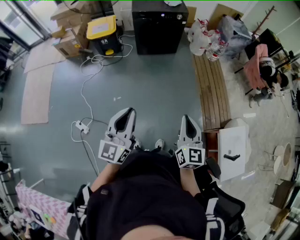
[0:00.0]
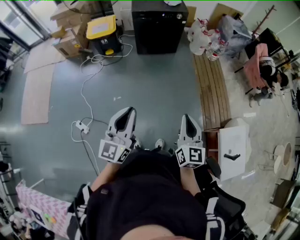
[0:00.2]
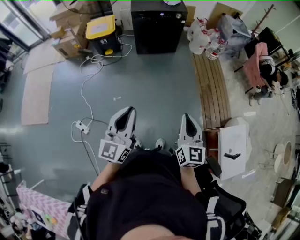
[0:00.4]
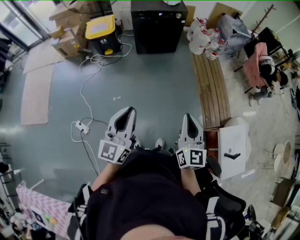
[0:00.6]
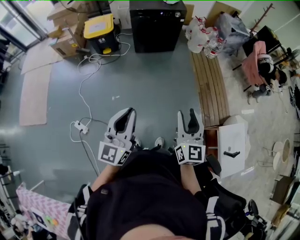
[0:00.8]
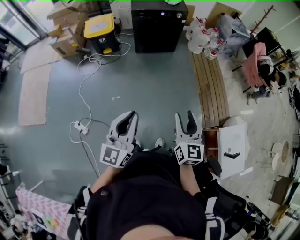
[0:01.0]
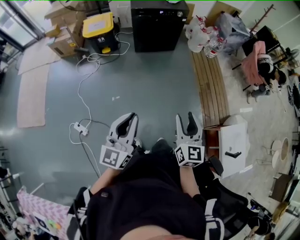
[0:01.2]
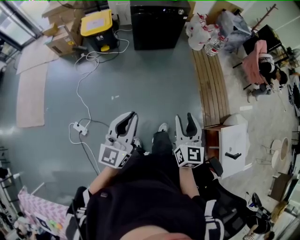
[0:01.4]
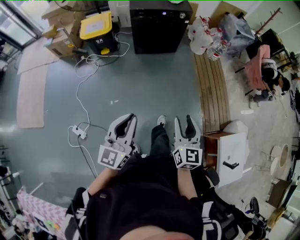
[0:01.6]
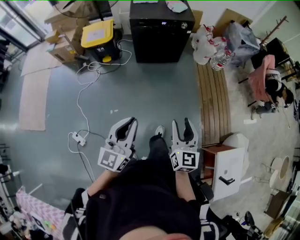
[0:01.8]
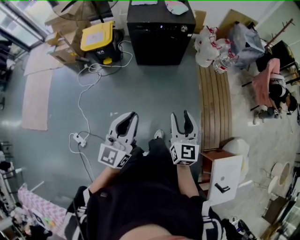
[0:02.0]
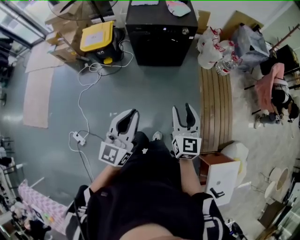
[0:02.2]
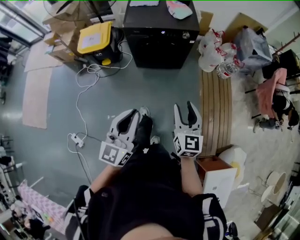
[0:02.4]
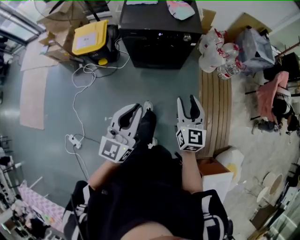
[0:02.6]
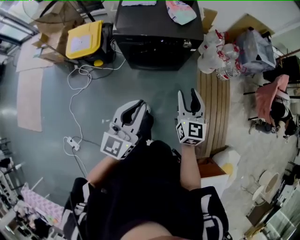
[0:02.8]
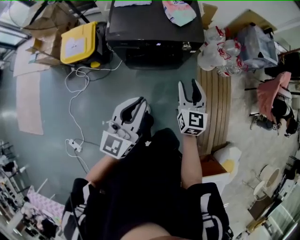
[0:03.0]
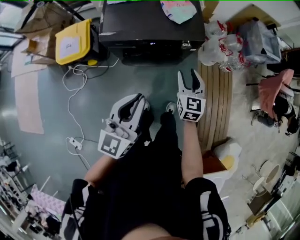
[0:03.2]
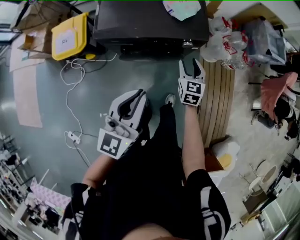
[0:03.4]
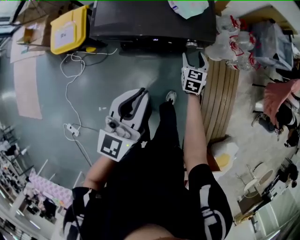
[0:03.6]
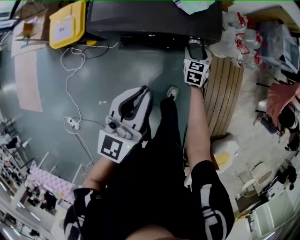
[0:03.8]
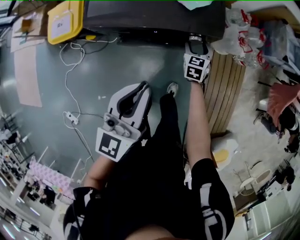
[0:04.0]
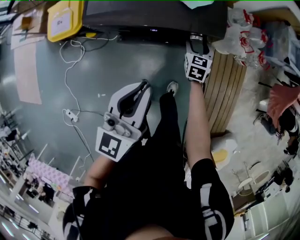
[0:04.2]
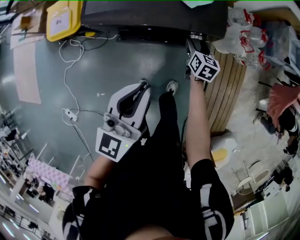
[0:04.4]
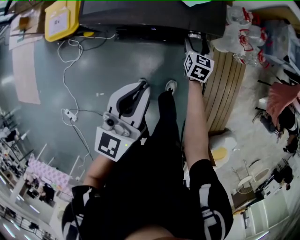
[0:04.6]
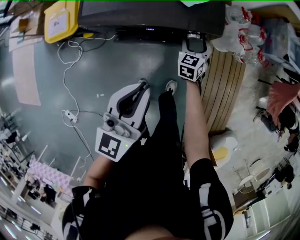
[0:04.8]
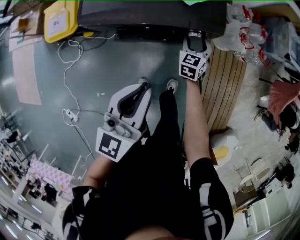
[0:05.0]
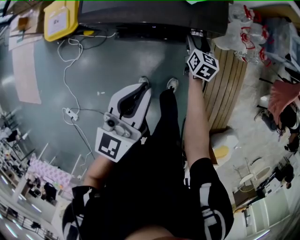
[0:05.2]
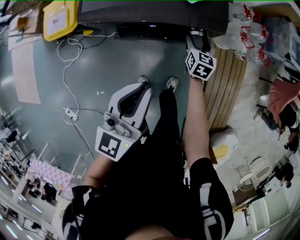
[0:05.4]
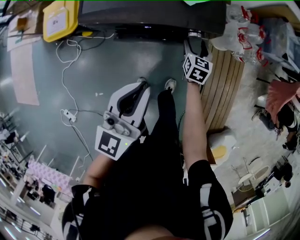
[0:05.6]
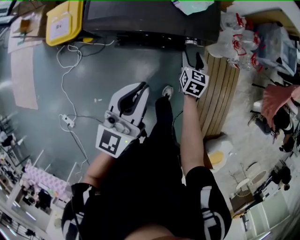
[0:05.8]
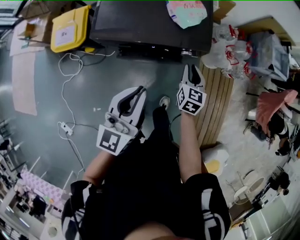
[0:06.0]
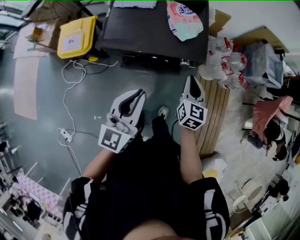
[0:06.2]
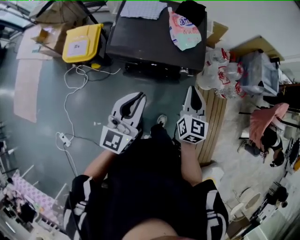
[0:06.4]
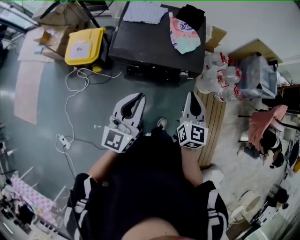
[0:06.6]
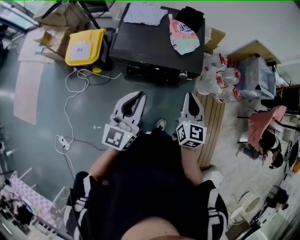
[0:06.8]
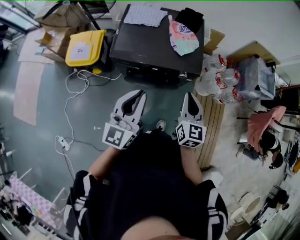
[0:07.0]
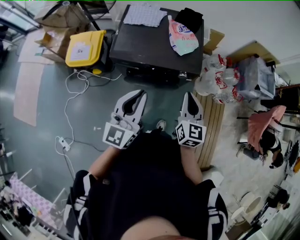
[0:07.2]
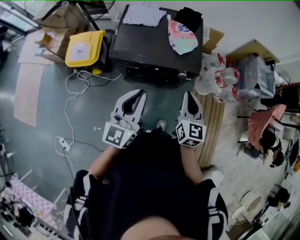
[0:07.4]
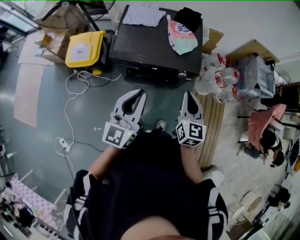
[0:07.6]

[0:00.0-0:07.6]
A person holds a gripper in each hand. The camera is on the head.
0.0 to 1.6 s: The two grippers go approximately 15 cm forward and downward. The right gripper opens its fingers.
1.6 to 3.0 s: Both grippers are carried forward, approximately 80 cm.
3.0 to 4.6 s: The left gripper goes roughly 25 cm forward and downward. Meanwhile the right gripper travels downward and forward by some 40 cm, and rotates some 20 degrees.
4.6 to 6.0 s: The left gripper moves upward, some 5 cm, while the right gripper travels upward and backward by some 15 cm, and closes up.
6.0 to 7.6 s: The left gripper shifts roughly 15 cm upward and backward; the right gripper shifts about 25 cm upward and backward.

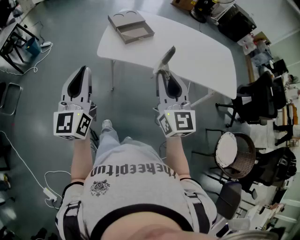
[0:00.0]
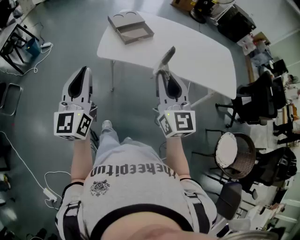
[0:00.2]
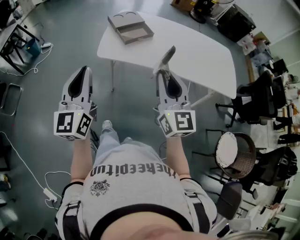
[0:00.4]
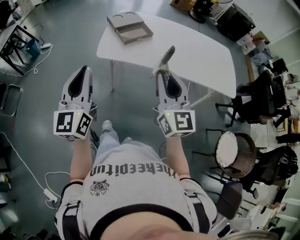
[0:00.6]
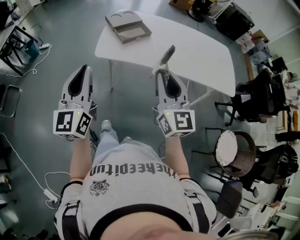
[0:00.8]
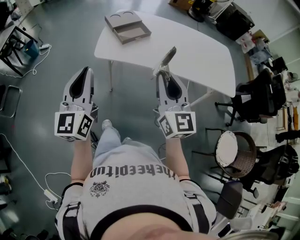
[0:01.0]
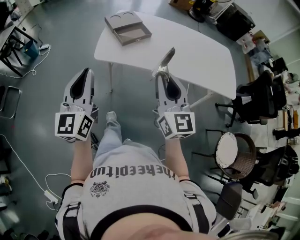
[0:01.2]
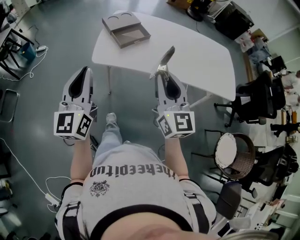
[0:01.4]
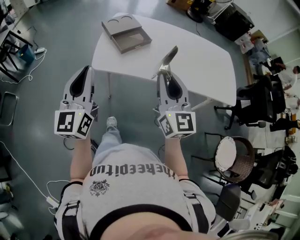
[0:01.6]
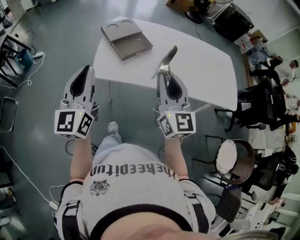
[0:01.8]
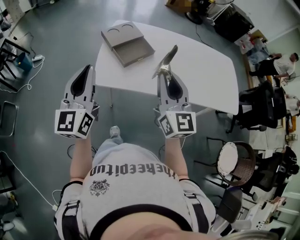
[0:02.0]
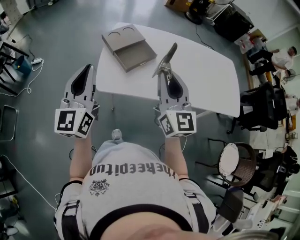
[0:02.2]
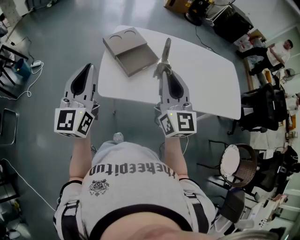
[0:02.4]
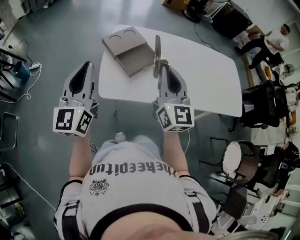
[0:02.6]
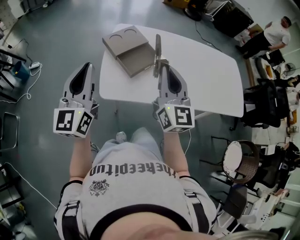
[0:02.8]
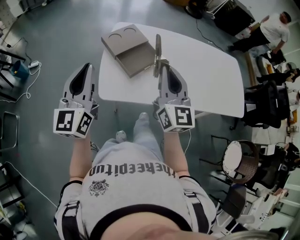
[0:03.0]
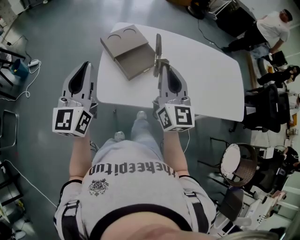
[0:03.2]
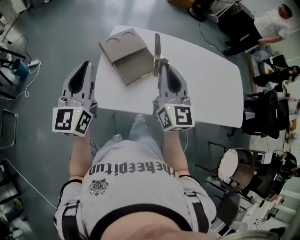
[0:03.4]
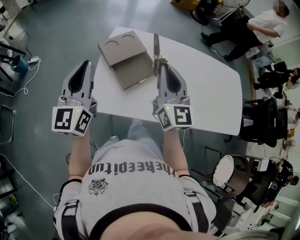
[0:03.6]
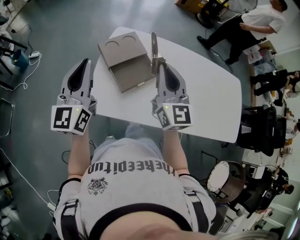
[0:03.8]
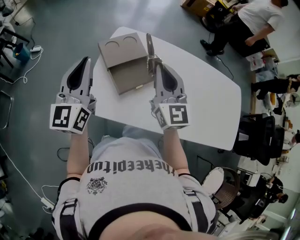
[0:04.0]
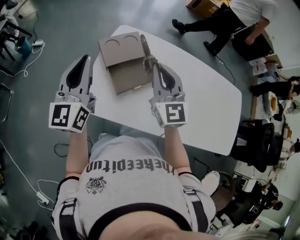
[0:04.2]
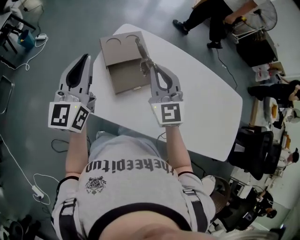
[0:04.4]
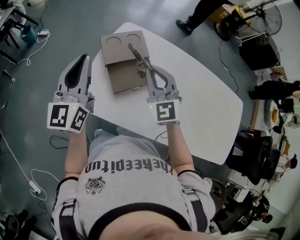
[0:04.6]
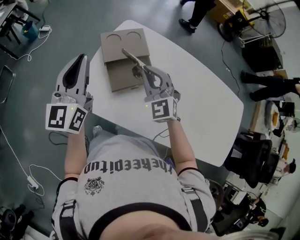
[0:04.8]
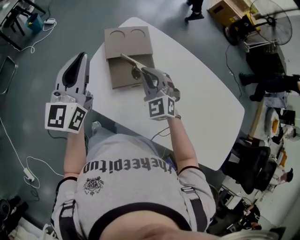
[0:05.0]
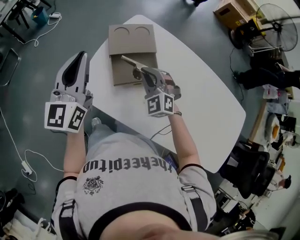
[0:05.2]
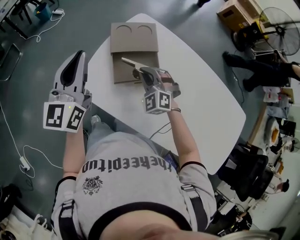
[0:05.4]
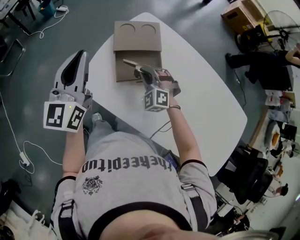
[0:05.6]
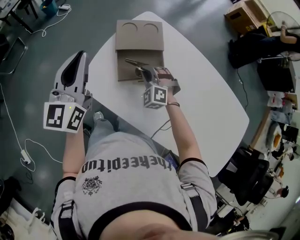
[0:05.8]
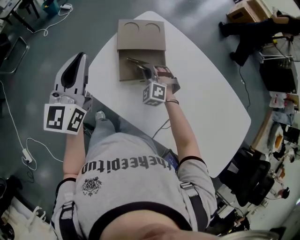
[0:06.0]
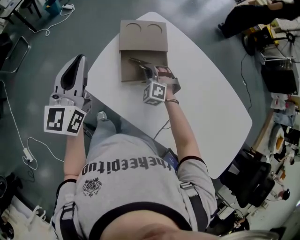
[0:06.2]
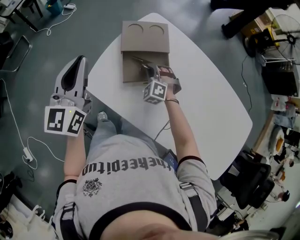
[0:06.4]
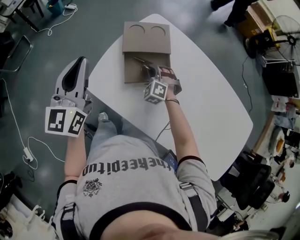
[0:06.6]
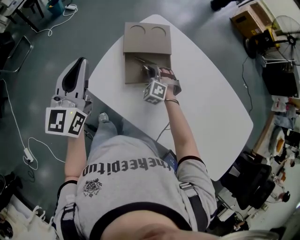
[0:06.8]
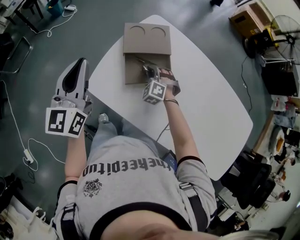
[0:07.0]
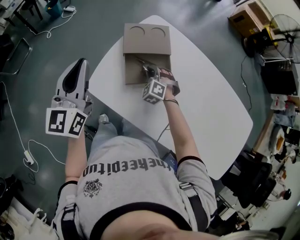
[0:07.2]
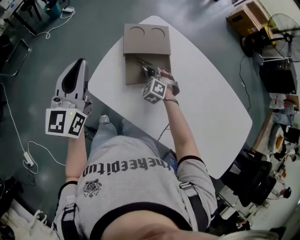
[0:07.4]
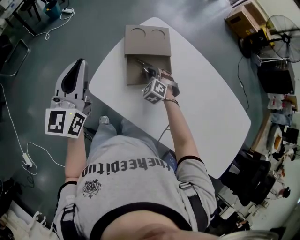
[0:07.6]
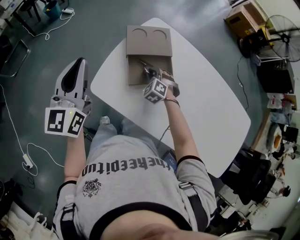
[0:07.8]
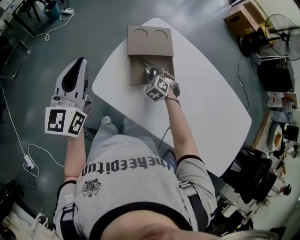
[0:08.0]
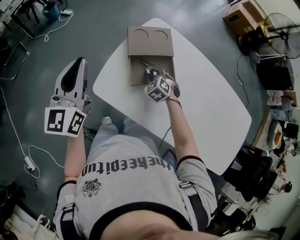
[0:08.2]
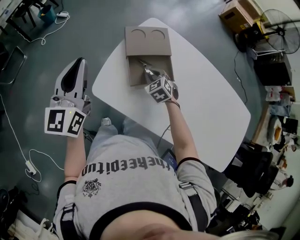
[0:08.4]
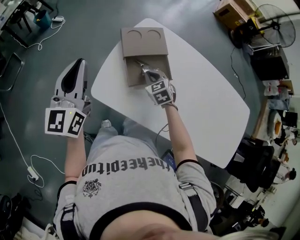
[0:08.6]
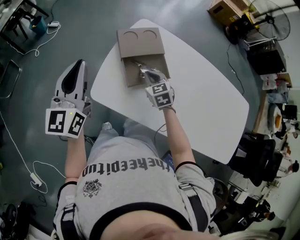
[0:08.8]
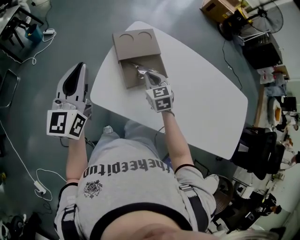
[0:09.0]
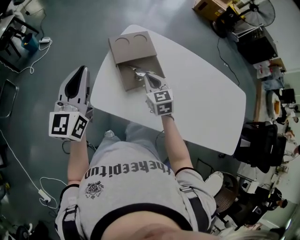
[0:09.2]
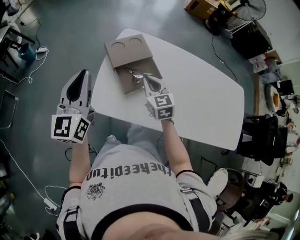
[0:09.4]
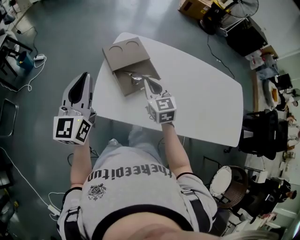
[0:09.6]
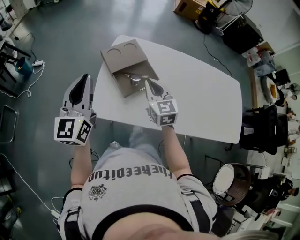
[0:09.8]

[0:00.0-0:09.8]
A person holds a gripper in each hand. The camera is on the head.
0.0 to 1.4 s: The left gripper moves forward, about 5 cm.
1.4 to 2.8 s: Both grippers move forward, approximately 25 cm.
2.8 to 4.2 s: The left gripper moves forward and to the right, roughly 15 cm. The right gripper travels forward by roughly 20 cm, and rotates some 30 degrees.
4.2 to 5.6 s: The right gripper travels downward by about 20 cm, and angles its fingers downward, by some 30 degrees.
5.6 to 7.0 s: The right gripper moves downward, roughly 10 cm.
7.0 to 8.4 s: The right gripper rotates roughly 30 degrees, while the left gripper ends up about 5 cm from where it was.
8.4 to 9.8 s: The right gripper is displaced upward and backward by some 20 cm, and tilts its fingers approximately 30 degrees upward.

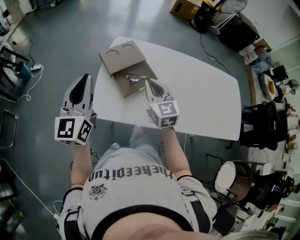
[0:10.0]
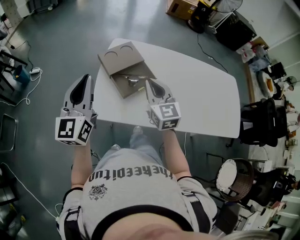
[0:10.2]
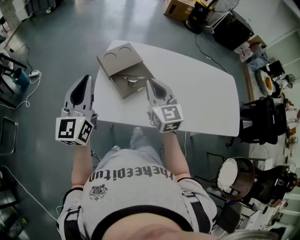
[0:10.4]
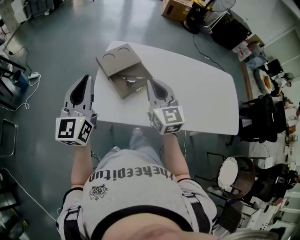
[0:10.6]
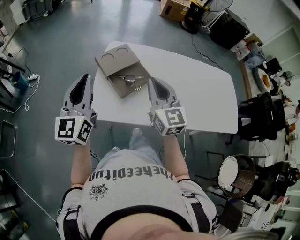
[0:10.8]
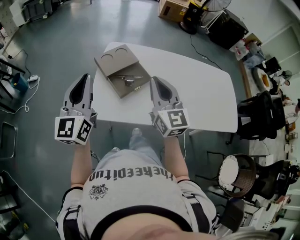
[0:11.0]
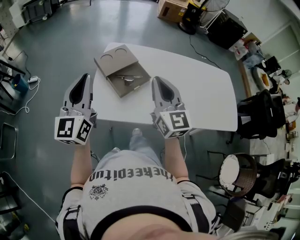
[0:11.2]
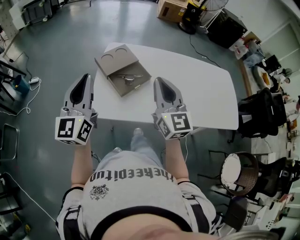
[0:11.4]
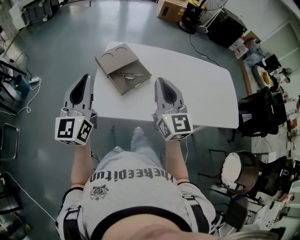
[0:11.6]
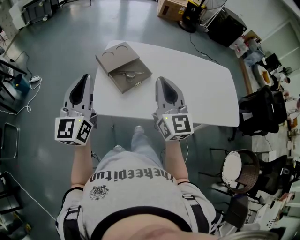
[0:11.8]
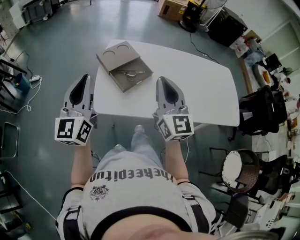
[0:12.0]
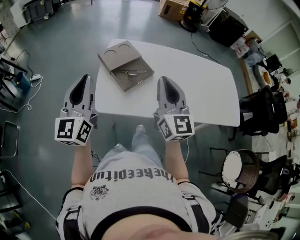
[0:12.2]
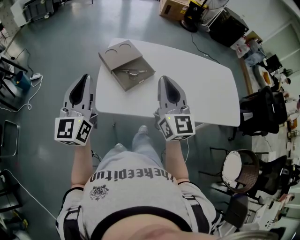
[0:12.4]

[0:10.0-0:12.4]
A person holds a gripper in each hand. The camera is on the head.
10.0 to 11.2 s: The right gripper shifts some 15 cm upward and backward. The left gripper moves about 5 cm.
11.2 to 12.4 s: There are only small adjustments of the grippers.

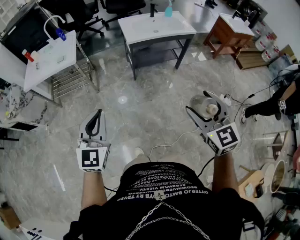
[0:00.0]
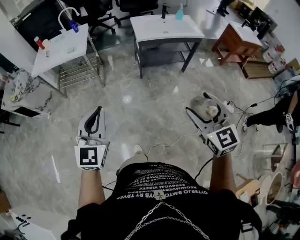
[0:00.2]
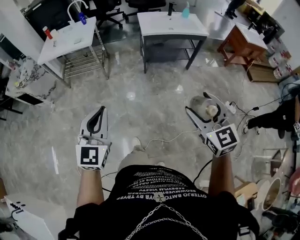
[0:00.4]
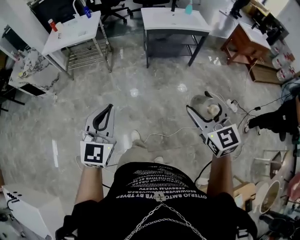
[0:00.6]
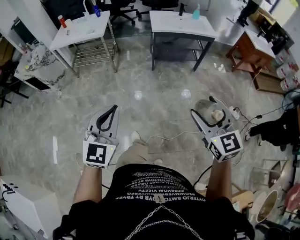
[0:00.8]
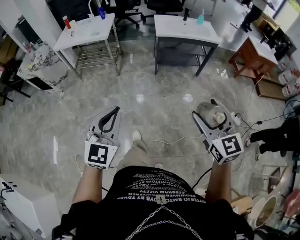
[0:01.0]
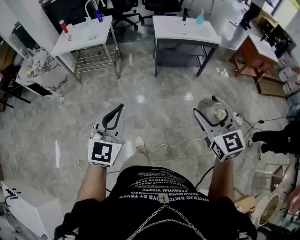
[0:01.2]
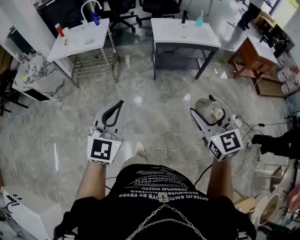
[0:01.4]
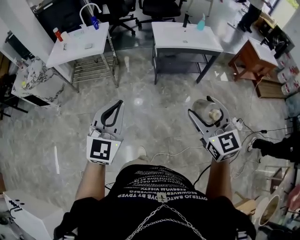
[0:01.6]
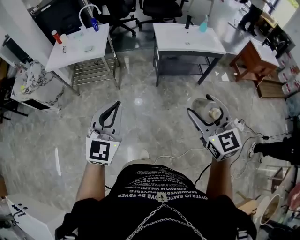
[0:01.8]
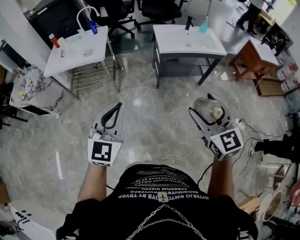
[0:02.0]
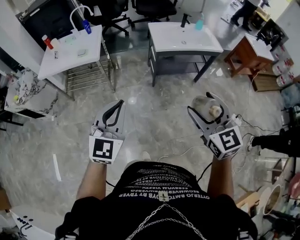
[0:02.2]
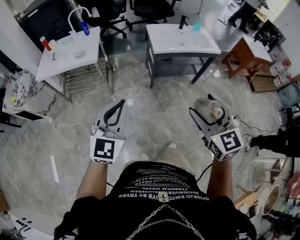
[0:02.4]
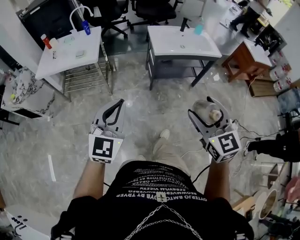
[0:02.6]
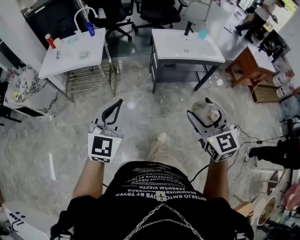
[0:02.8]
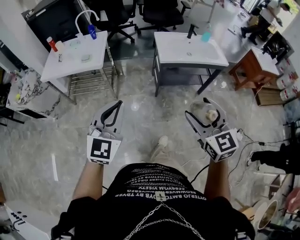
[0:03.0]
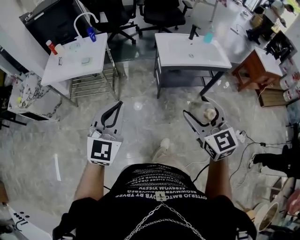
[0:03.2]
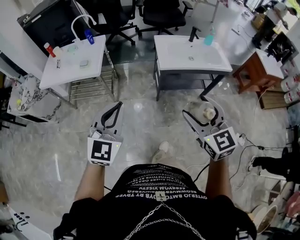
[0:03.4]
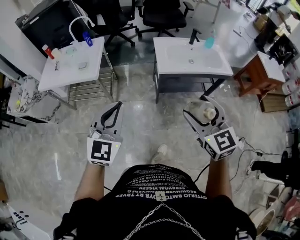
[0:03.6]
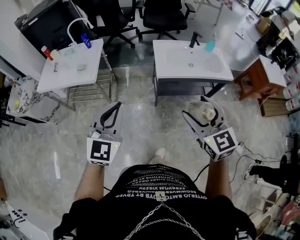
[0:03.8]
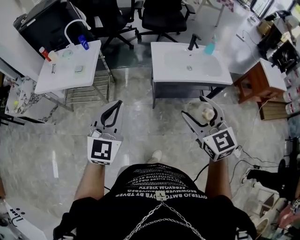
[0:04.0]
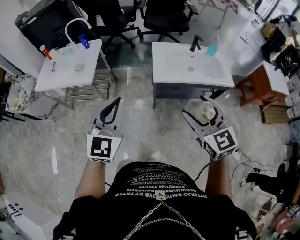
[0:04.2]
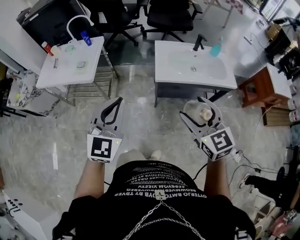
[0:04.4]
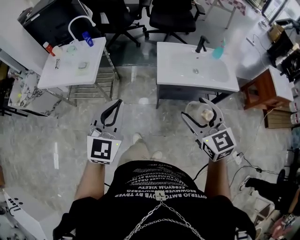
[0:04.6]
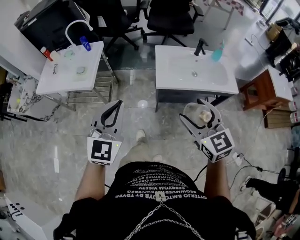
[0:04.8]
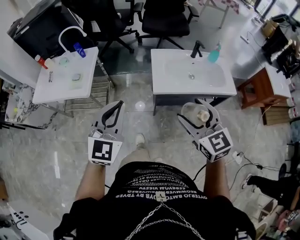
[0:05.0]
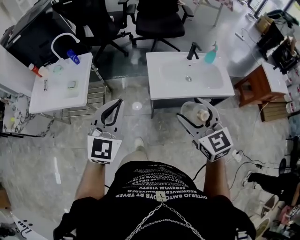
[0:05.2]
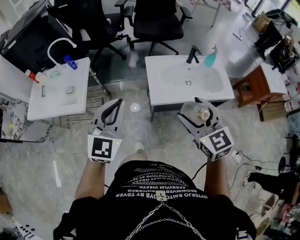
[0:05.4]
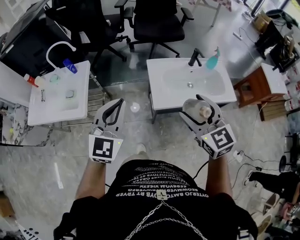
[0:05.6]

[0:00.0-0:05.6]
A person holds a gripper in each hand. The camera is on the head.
0.0 to 1.4 s: The left gripper moves backward, roughly 10 cm; the right gripper travels backward and back again, about 20 cm each way.
1.4 to 2.8 s: The two grippers go roughly 25 cm forward and to the left.
2.8 to 4.2 s: Both grippers move forward and to the right, roughly 30 cm.
4.2 to 5.6 s: The two grippers go approximately 25 cm forward.
